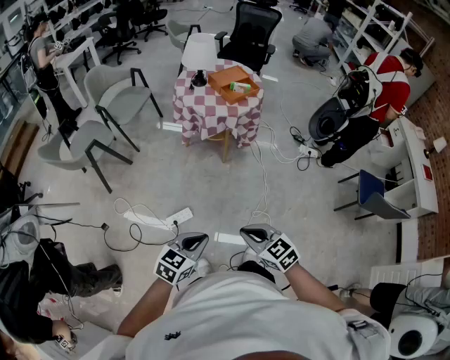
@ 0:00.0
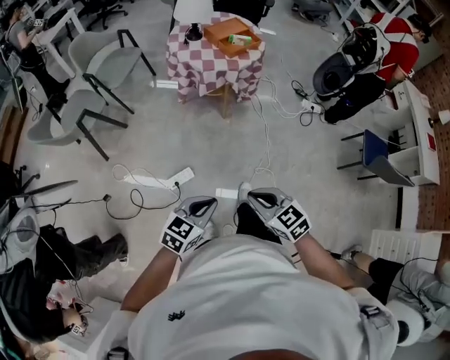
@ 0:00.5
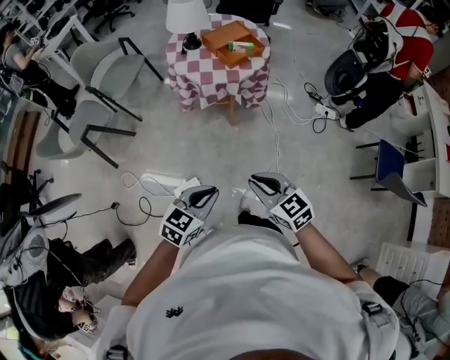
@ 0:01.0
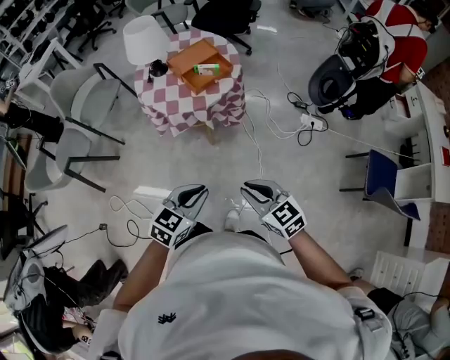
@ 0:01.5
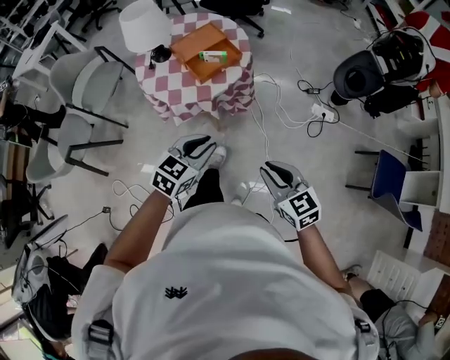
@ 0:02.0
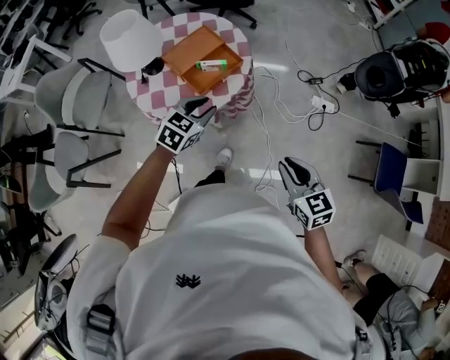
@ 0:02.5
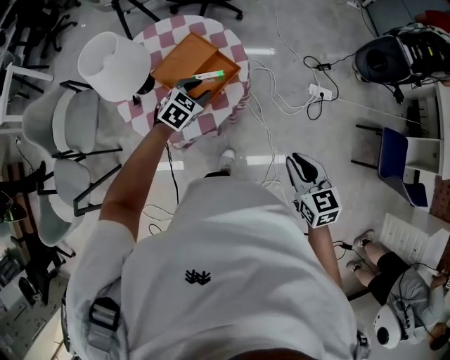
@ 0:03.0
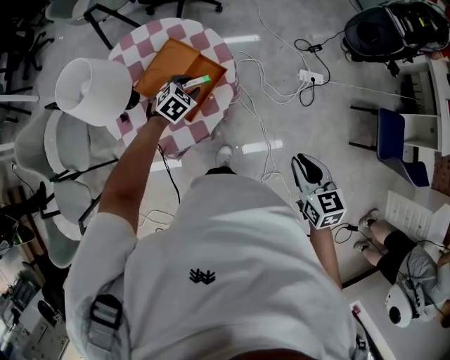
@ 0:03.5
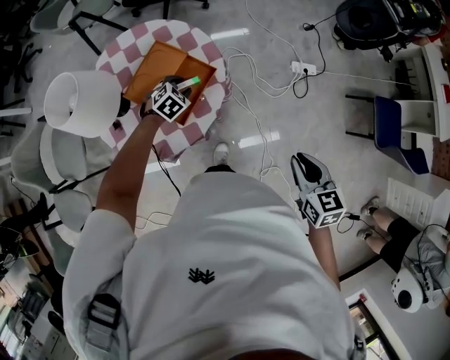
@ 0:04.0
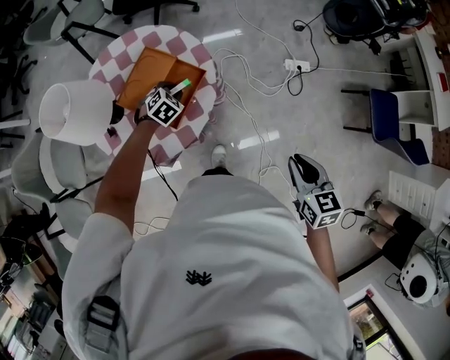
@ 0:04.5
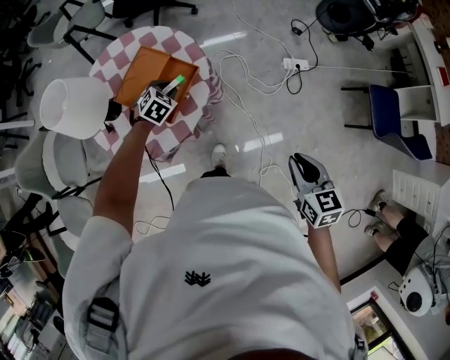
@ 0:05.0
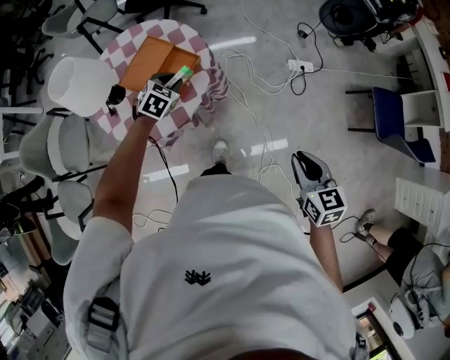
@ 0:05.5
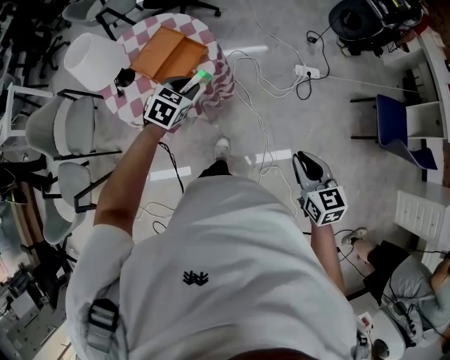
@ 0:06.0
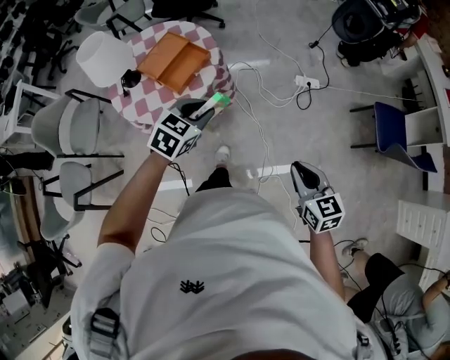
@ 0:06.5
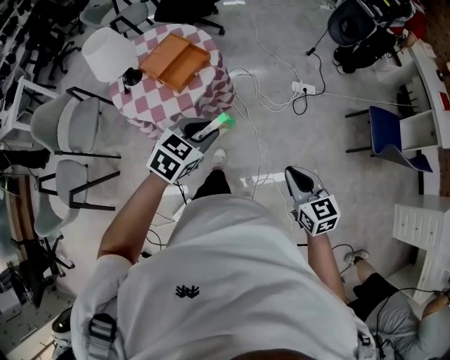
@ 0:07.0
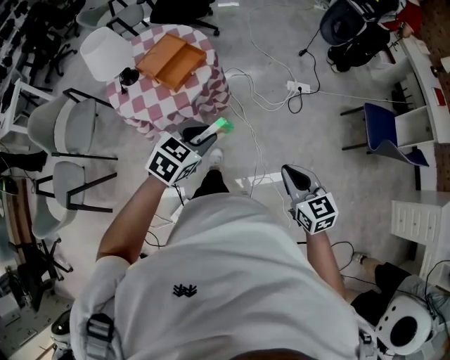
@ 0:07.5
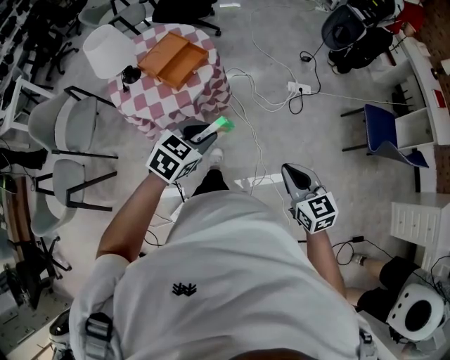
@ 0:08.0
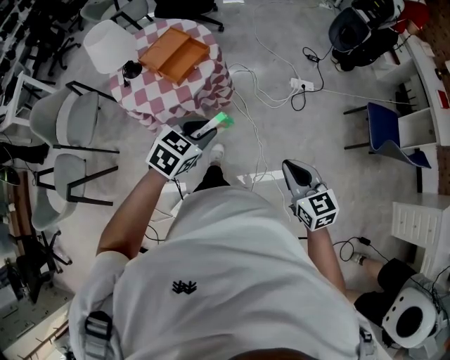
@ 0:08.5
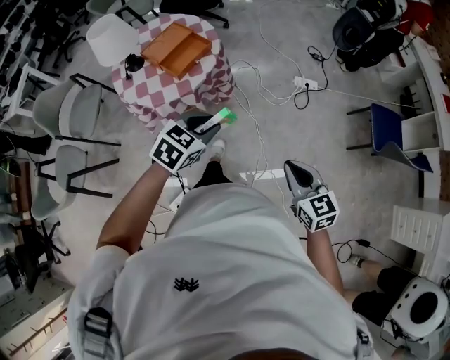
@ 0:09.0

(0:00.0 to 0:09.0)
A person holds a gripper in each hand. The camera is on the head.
0:00.0 - 0:02.0: Both grippers are carried forward and to the right, roughly 50 cm.
0:02.0 - 0:04.5: The left gripper shifts by about 50 cm, and changes its angle by approximately 40 degrees. The right gripper changes place by roughly 20 cm, and changes its angle by about 40 degrees.
0:04.5 - 0:07.0: The left gripper moves backward, upward and to the right, some 50 cm, and turns by about 30 degrees; the right gripper heads backward and to the right, covering roughly 25 cm.
0:07.0 - 0:09.0: The grippers move only a little.

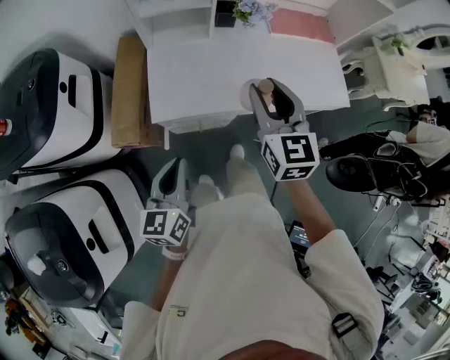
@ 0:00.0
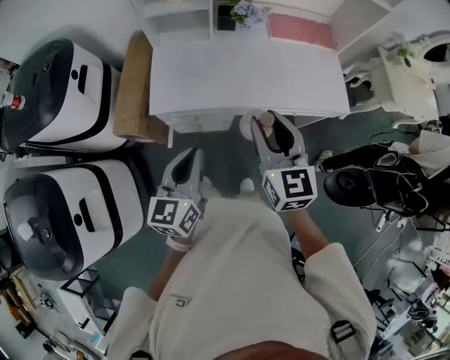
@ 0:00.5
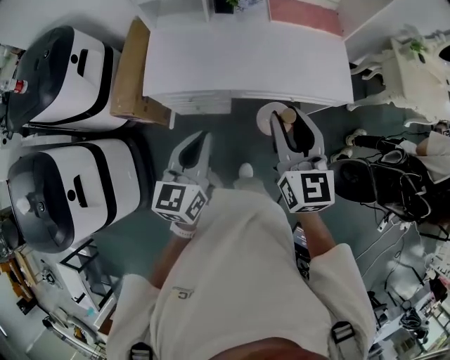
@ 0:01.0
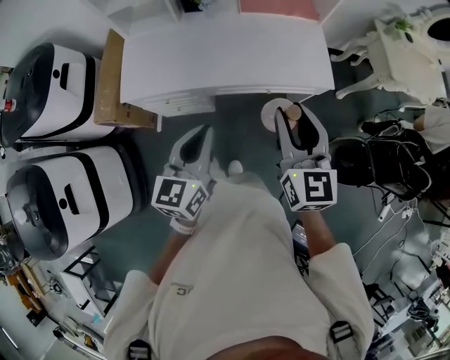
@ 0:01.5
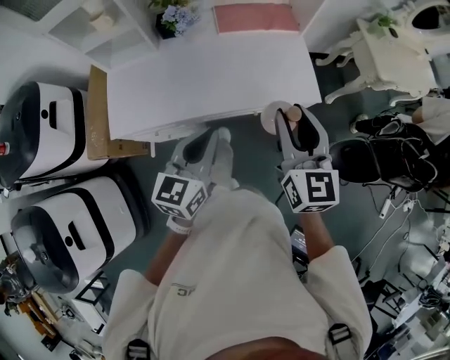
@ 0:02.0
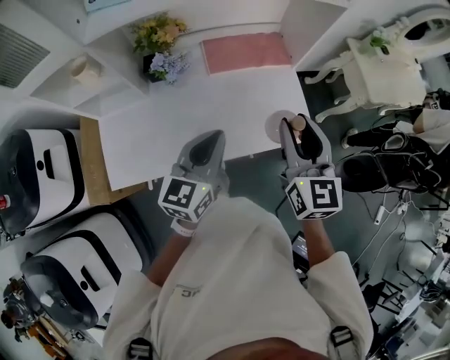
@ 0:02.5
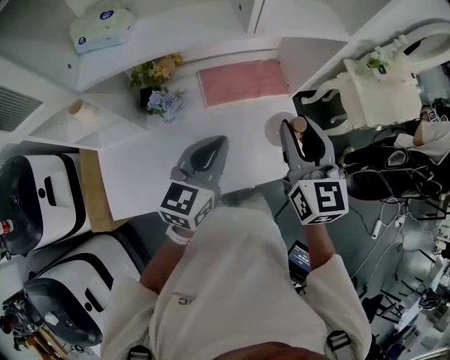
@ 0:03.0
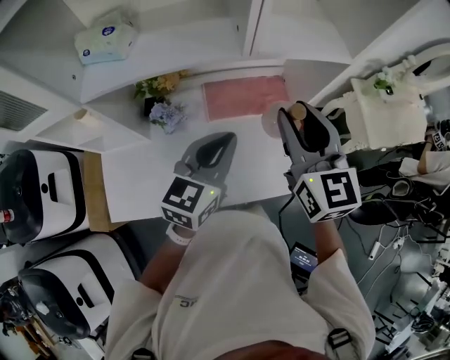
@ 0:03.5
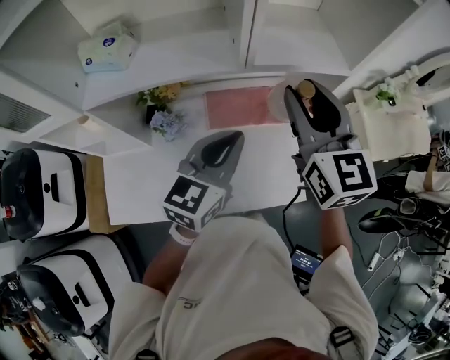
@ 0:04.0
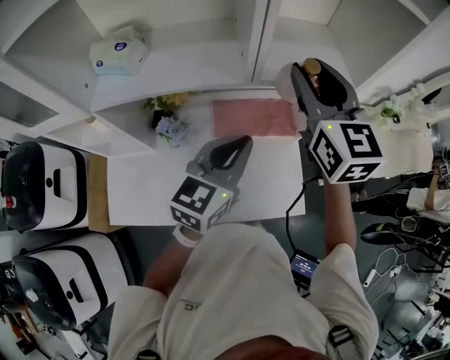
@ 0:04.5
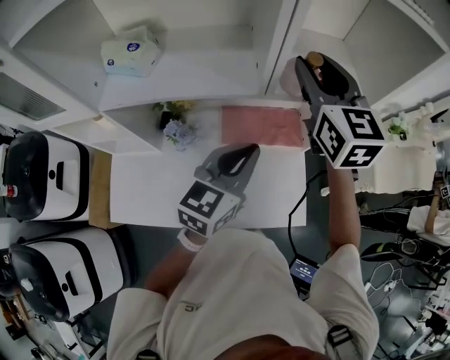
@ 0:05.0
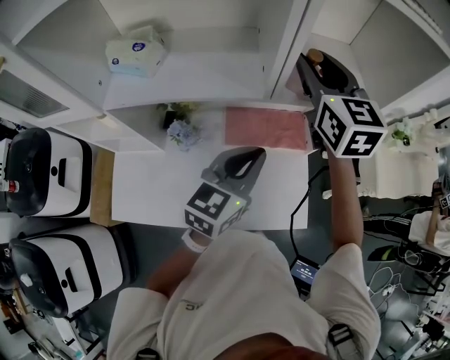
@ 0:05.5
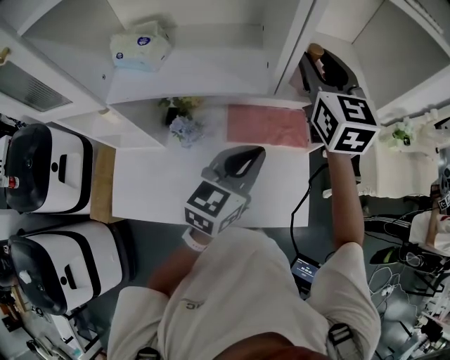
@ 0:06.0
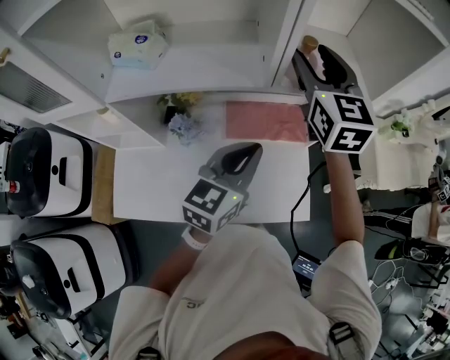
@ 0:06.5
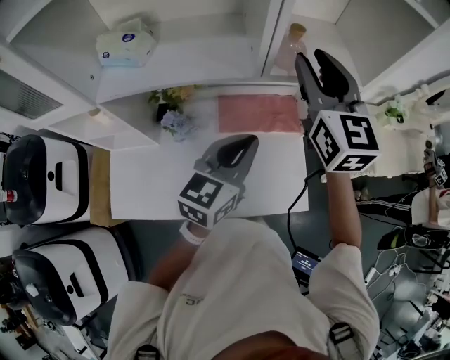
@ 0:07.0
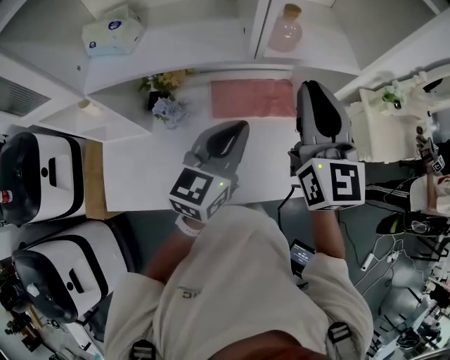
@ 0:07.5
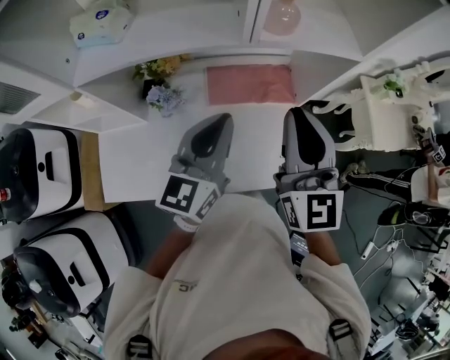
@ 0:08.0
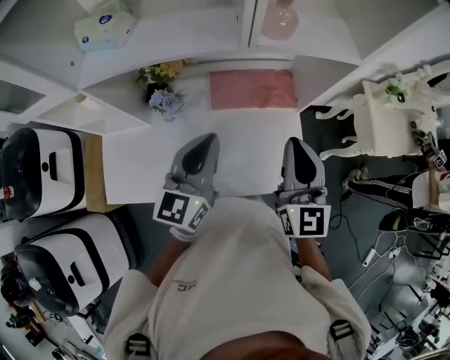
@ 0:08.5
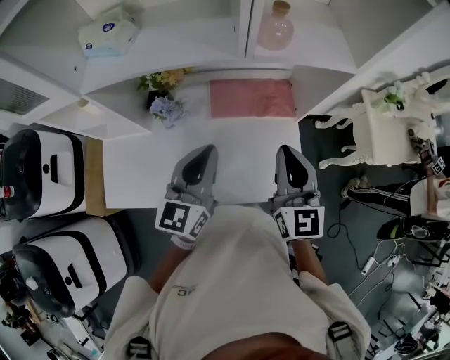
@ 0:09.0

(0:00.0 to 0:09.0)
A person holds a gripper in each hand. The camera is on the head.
0:00.0 - 0:02.0: The two grippers go approximately 40 cm to the right.
0:02.0 - 0:04.5: The pair of grippers is taken forward, approximately 40 cm. The right gripper shifts roughly 20 cm upward.
0:04.5 - 0:07.0: The right gripper moves approximately 10 cm forward and comes back.
0:07.0 - 0:09.0: The left gripper shifts roughly 5 cm backward; the right gripper shifts about 25 cm downward and backward, and closes its fingers.

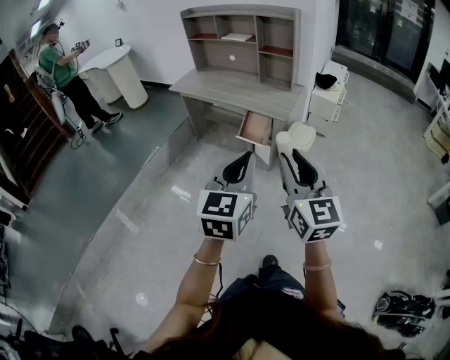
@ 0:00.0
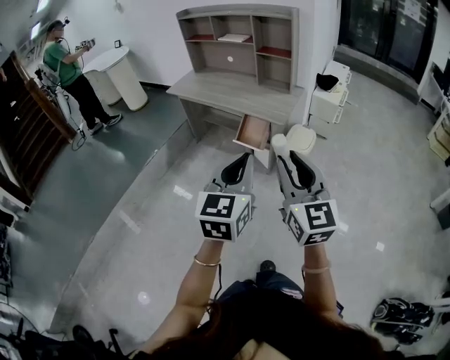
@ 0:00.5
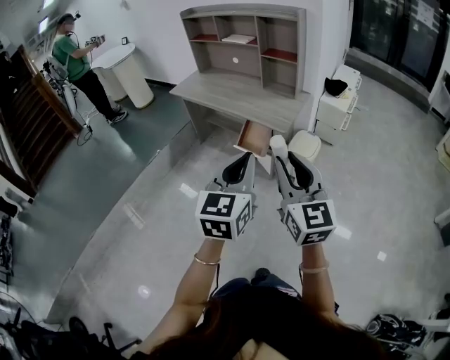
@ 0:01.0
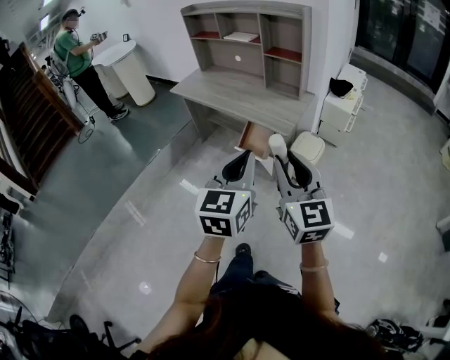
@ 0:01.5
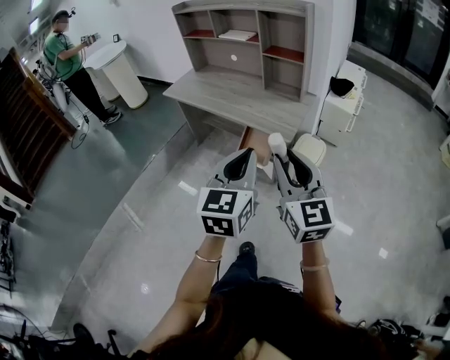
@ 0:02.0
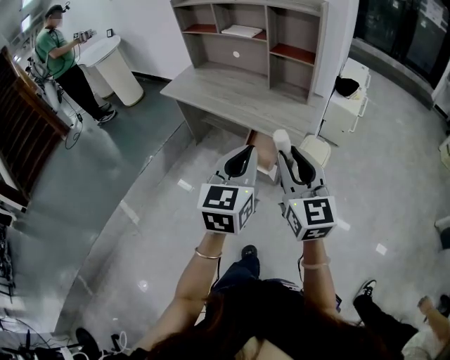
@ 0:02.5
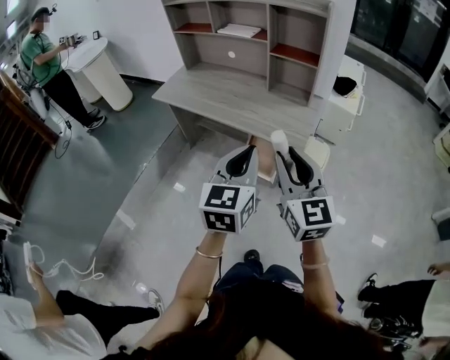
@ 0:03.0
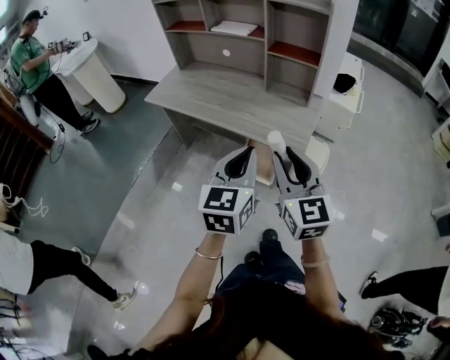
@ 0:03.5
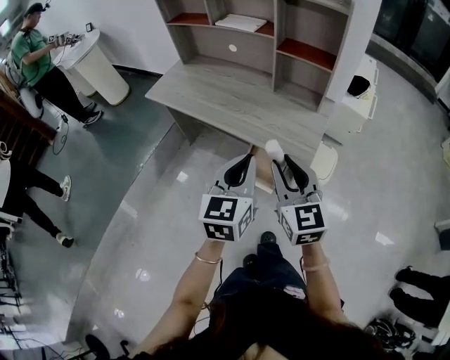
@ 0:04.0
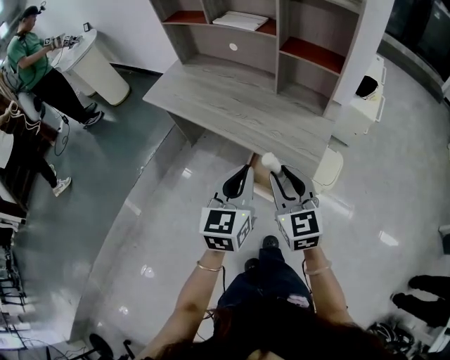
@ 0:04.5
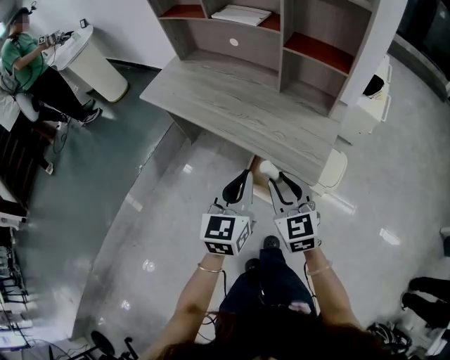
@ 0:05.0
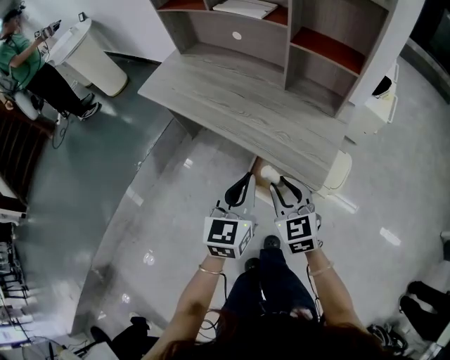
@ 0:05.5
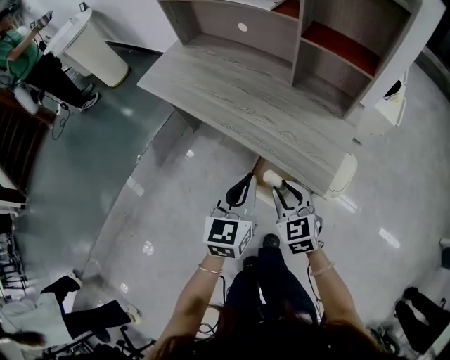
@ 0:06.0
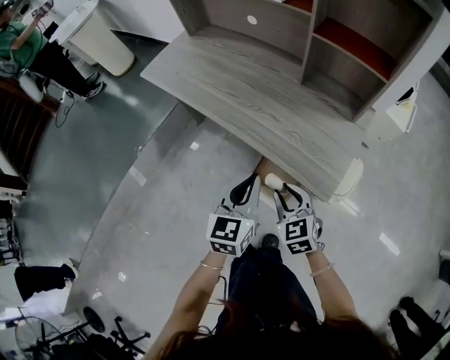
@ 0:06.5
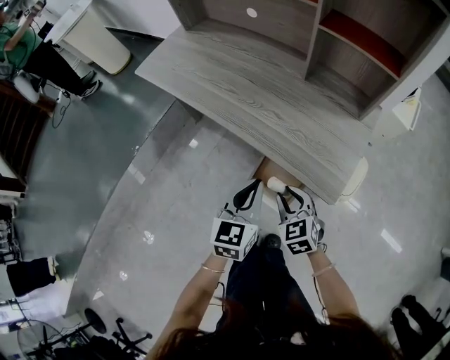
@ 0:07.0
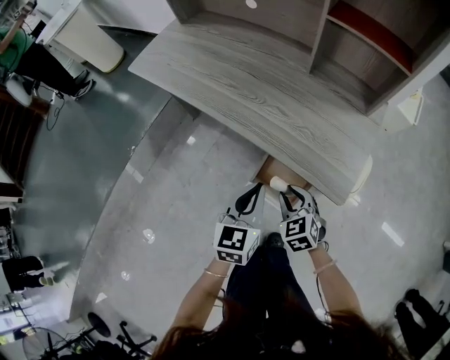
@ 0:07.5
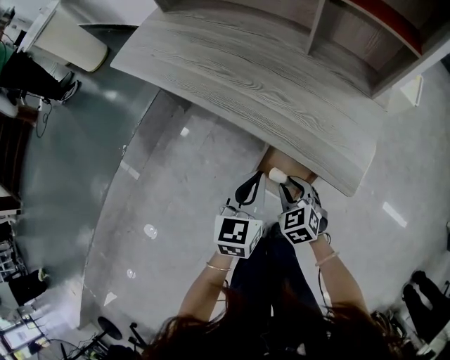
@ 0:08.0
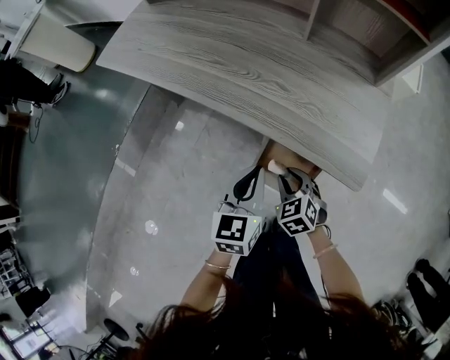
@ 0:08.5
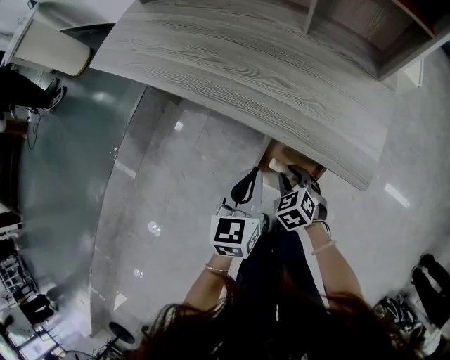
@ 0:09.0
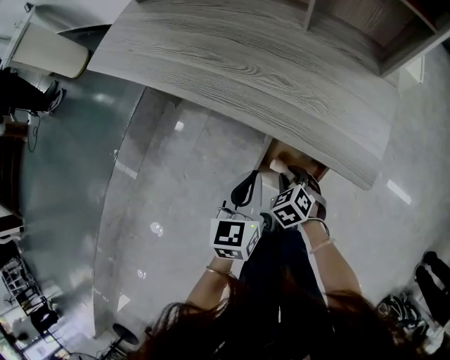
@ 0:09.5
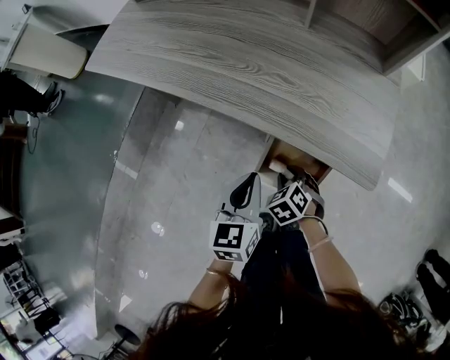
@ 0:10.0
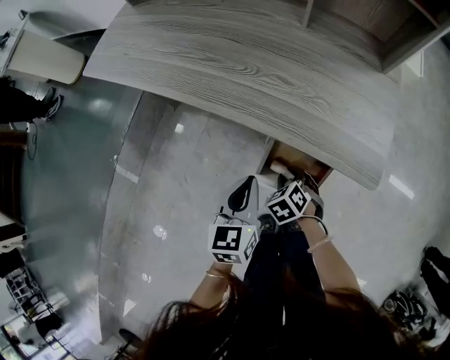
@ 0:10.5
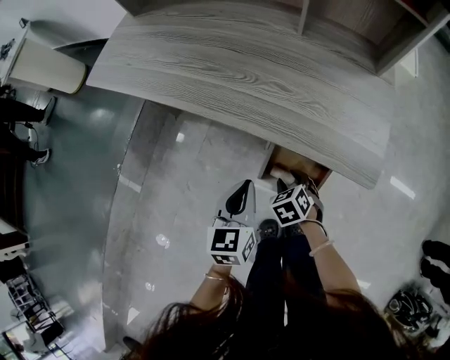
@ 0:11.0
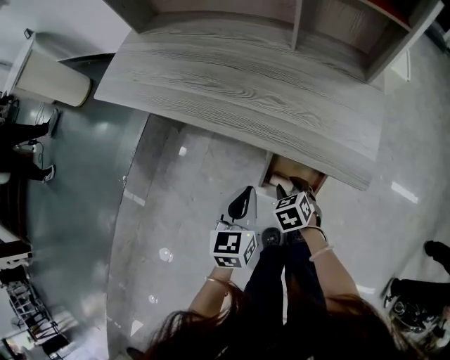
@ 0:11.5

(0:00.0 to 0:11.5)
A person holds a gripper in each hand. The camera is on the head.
0:00.0 - 0:02.0: The grippers both shift forward by approximately 25 cm.
0:02.0 - 0:04.0: The grippers both shift forward by roughly 25 cm.
0:04.0 - 0:06.0: Both grippers travel together downward and forward, roughly 20 cm. The right gripper swivels some 30 degrees.
0:06.0 - 0:07.5: The grippers both shift downward by approximately 15 cm.
0:07.5 - 0:09.5: The grippers both shift downward by roughly 10 cm. The right gripper changes its angle by roughly 20 degrees.
0:09.5 - 0:11.5: The grippers make only small movements.
